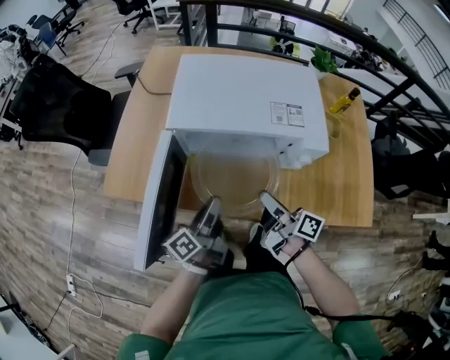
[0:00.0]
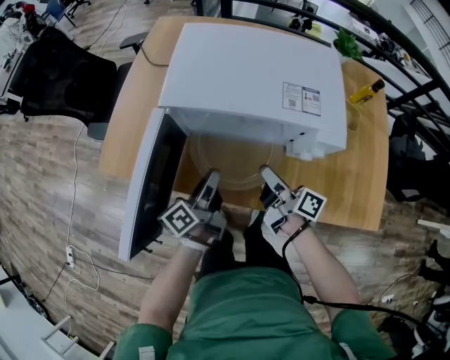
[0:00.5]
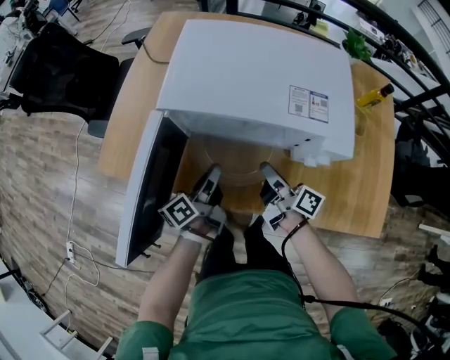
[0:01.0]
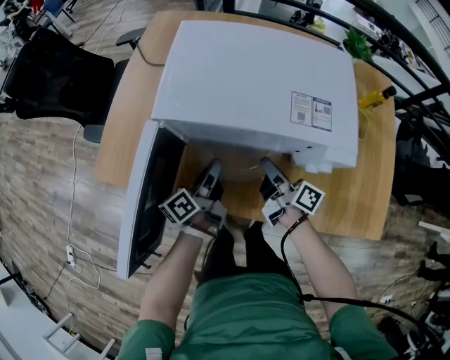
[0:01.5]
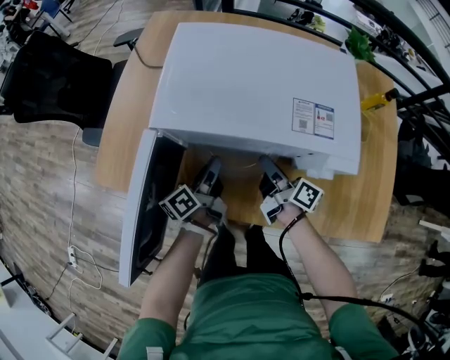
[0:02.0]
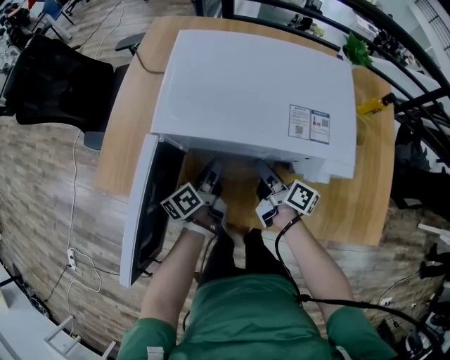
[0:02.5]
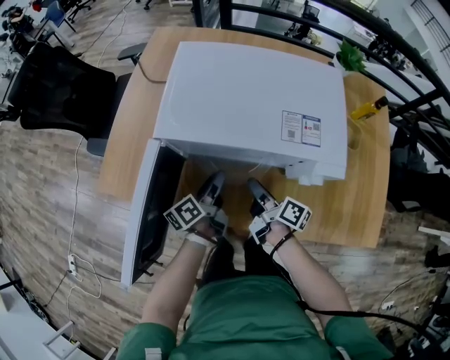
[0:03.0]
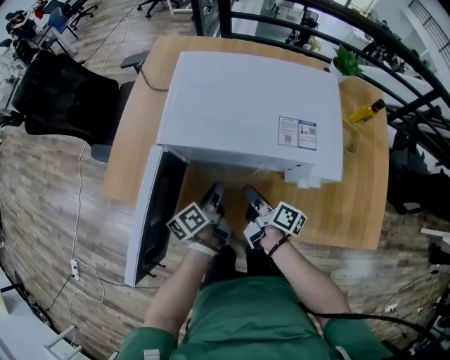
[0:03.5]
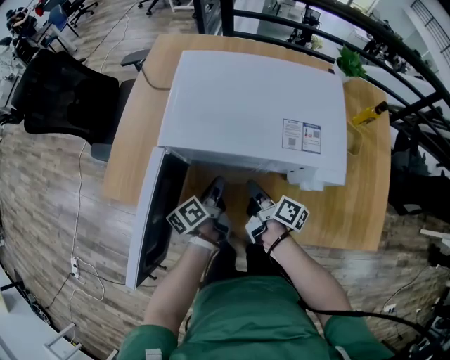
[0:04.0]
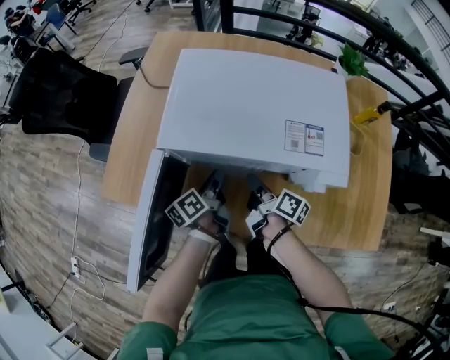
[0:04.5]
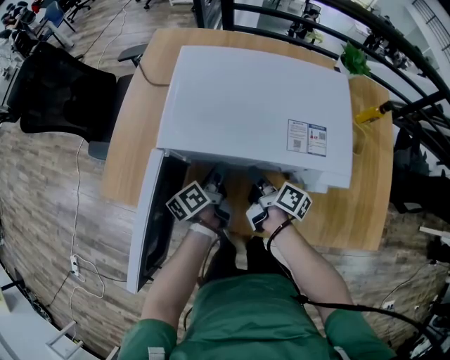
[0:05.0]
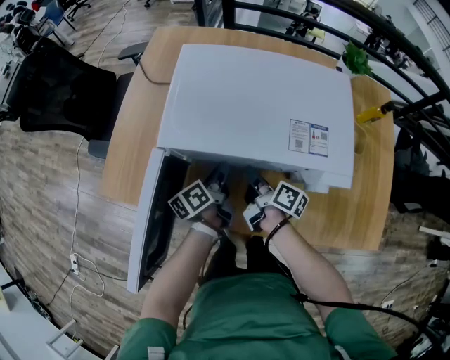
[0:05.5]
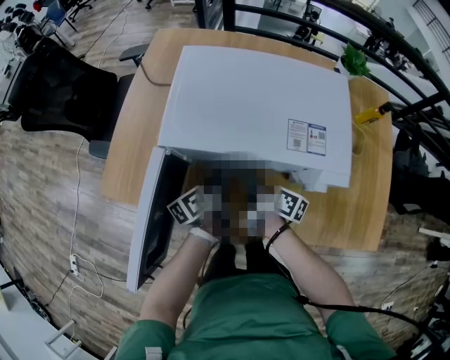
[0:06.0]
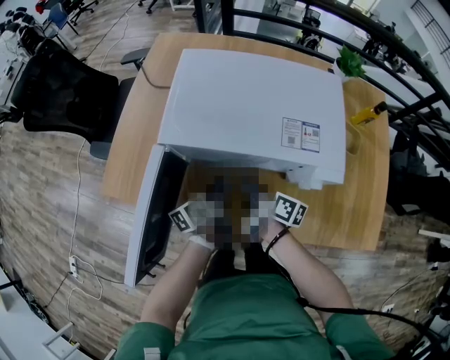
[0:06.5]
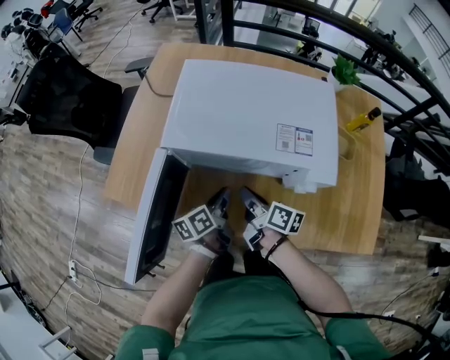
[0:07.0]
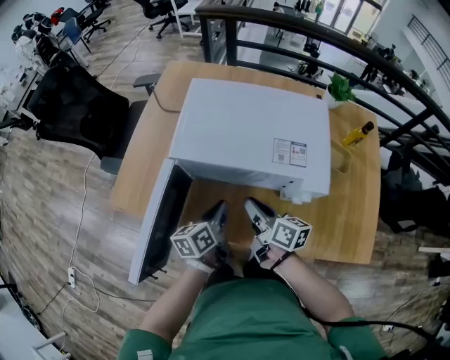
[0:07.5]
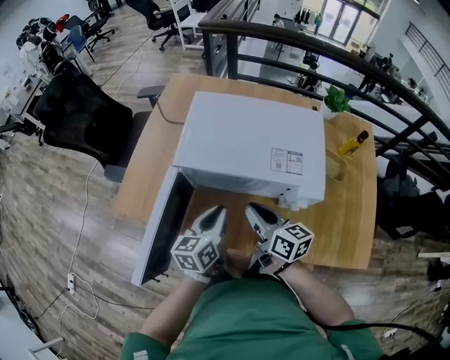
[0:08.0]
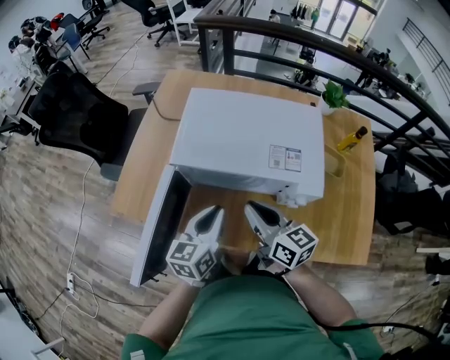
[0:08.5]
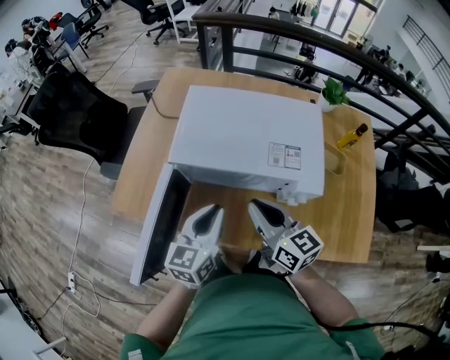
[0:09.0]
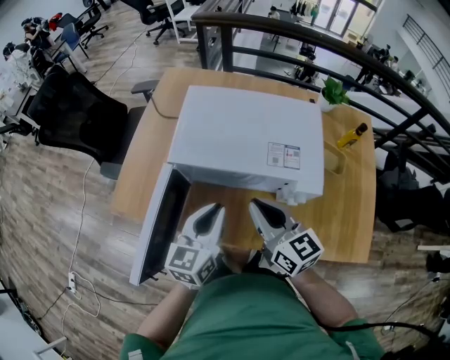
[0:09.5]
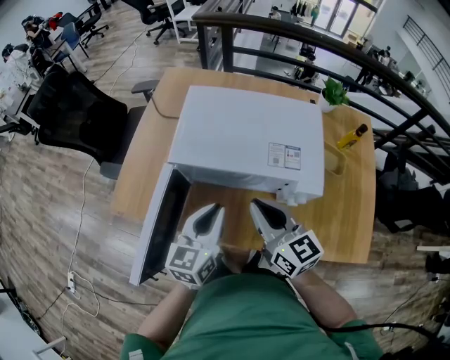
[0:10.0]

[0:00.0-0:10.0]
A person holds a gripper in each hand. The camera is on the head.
0:00.0 to 0:02.0: The two grippers go roughly 15 cm forward and downward.
0:02.0 to 0:04.0: The right gripper opens and closes again; the left gripper opens and closes again.
0:04.0 to 0:06.0: There are only small adjustments of the grippers.
0:06.0 to 0:08.0: Both grippers travel together upward and backward, approximately 15 cm. The right gripper swivels some 40 degrees, while the left gripper changes its angle by some 40 degrees.
0:08.0 to 0:10.0: The grippers both shift upward by some 5 cm. The right gripper changes its angle by about 20 degrees.

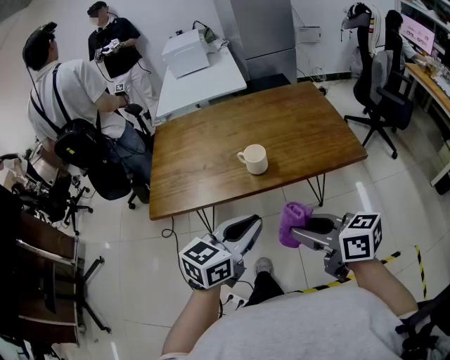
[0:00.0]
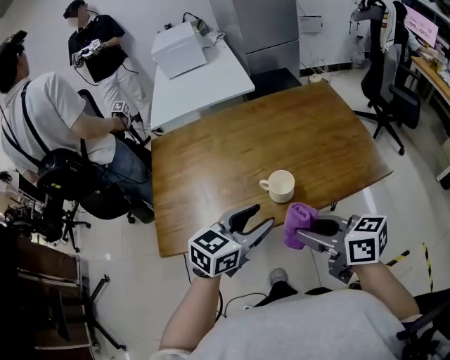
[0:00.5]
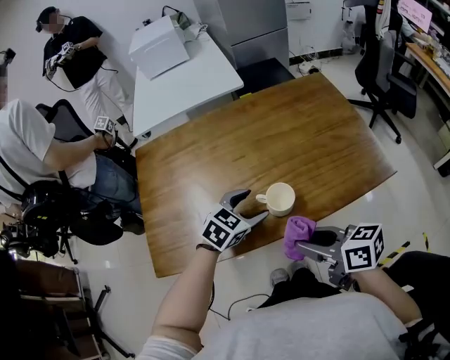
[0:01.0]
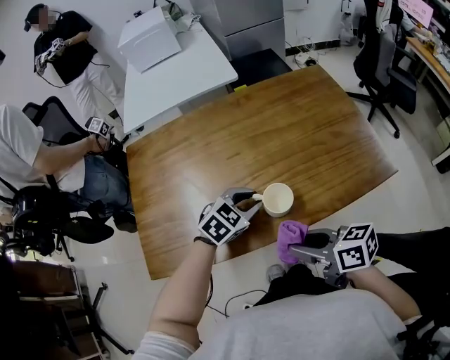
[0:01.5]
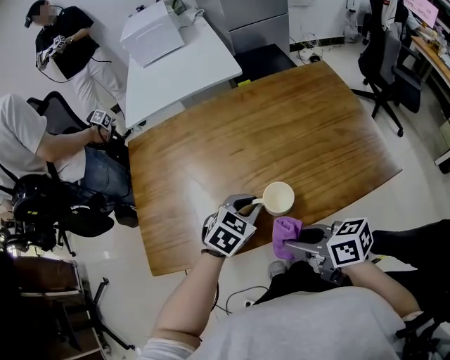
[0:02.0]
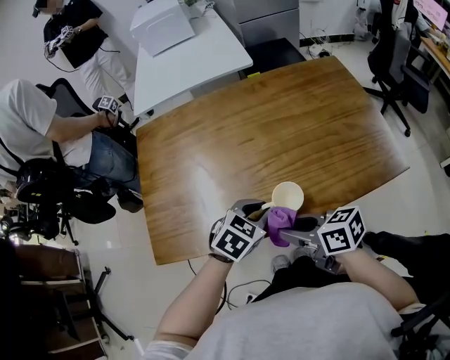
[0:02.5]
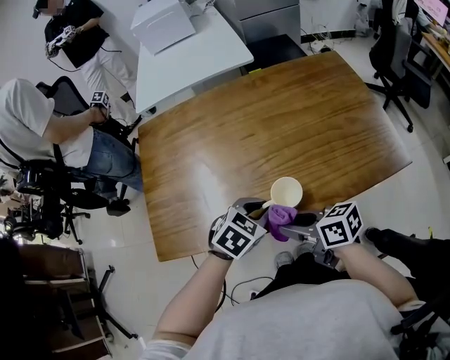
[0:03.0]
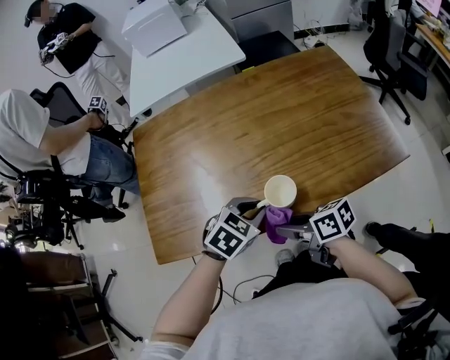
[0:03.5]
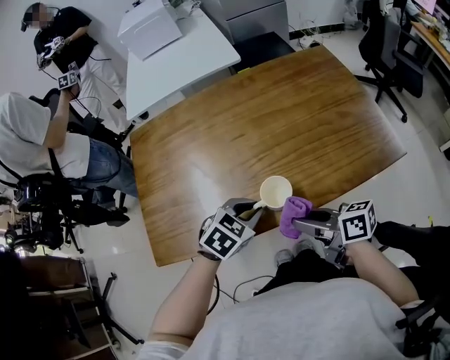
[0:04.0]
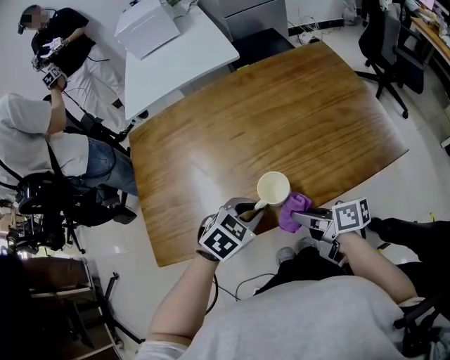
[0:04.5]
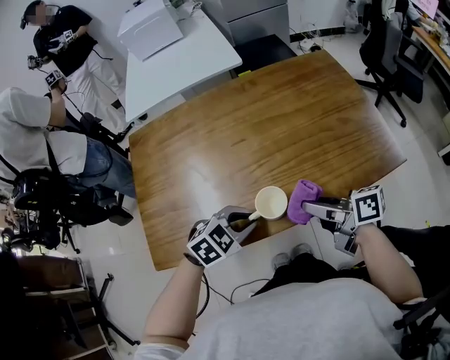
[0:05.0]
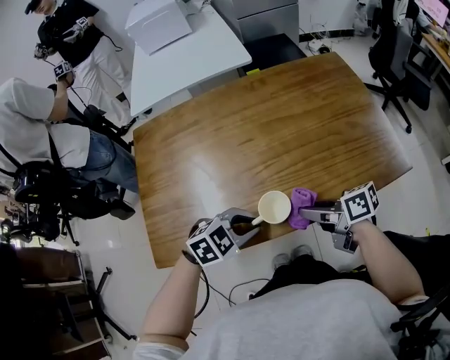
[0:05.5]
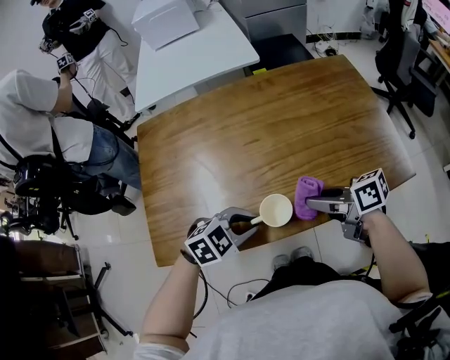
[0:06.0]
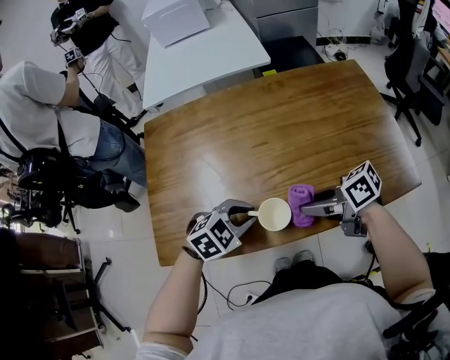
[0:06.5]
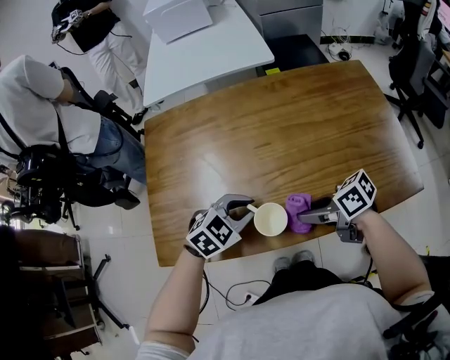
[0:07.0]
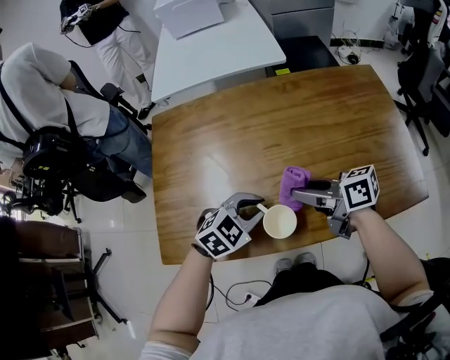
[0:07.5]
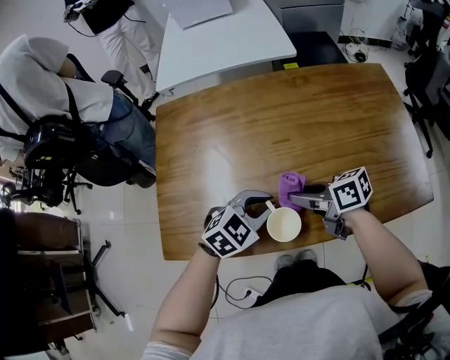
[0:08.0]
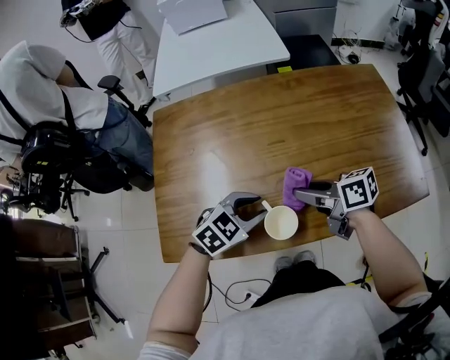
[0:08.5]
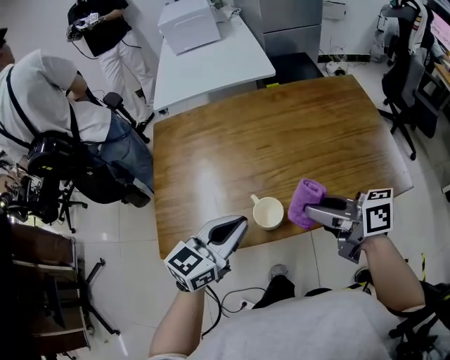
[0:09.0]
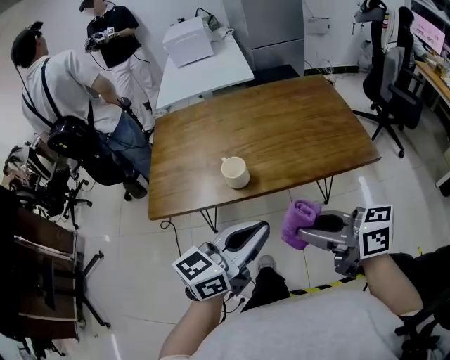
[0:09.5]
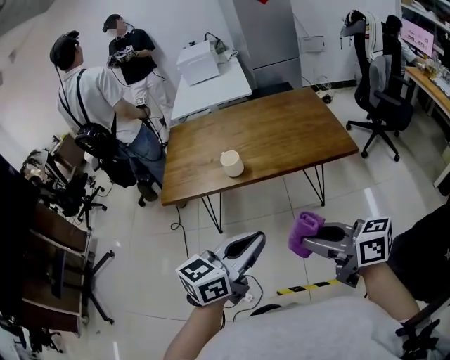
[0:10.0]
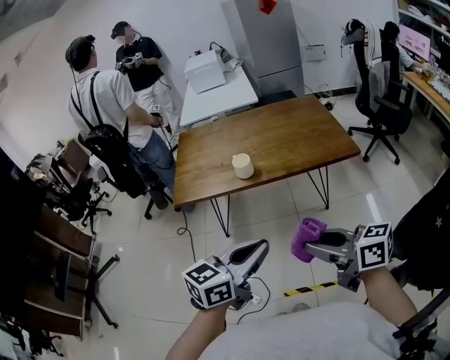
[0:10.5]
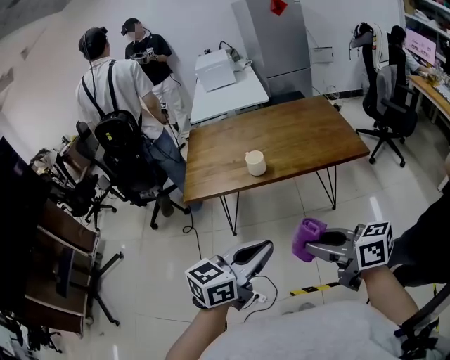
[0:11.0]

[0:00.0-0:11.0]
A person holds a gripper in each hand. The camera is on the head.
0:00.0 to 0:02.0: The two grippers go approximately 35 cm forward and downward. The left gripper angles its fingers downward, by about 30 degrees, and opens and closes again.
0:02.0 to 0:03.5: The left gripper changes place by some 5 cm, while the right gripper shifts roughly 10 cm downward.
0:03.5 to 0:05.5: The left gripper rotates approximately 20 degrees. The right gripper goes up and down, some 5 cm each way, reversing 3 times.
0:05.5 to 0:07.5: The left gripper ends up approximately 10 cm from where it was. Meanwhile the right gripper changes place by roughly 15 cm.
0:07.5 to 0:09.0: The left gripper moves upward, some 15 cm, and angles its fingers upward, by roughly 30 degrees; the right gripper changes place by some 15 cm.
0:09.0 to 0:11.0: The pair of grippers is taken backward, approximately 50 cm.

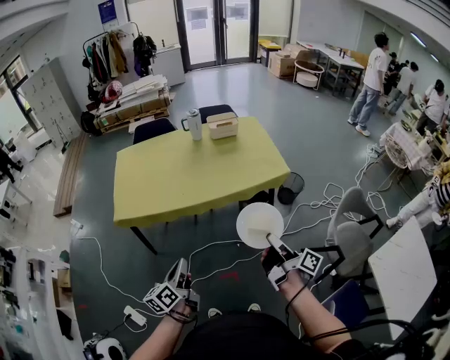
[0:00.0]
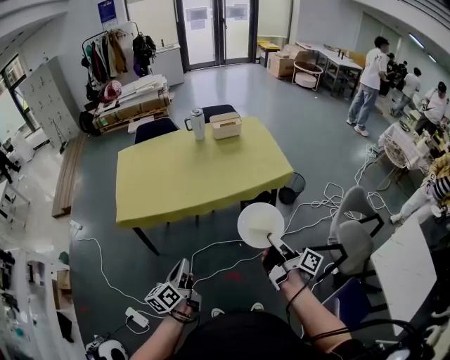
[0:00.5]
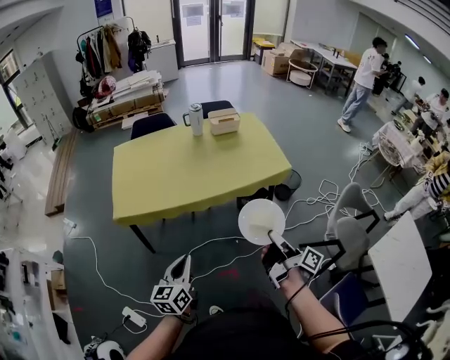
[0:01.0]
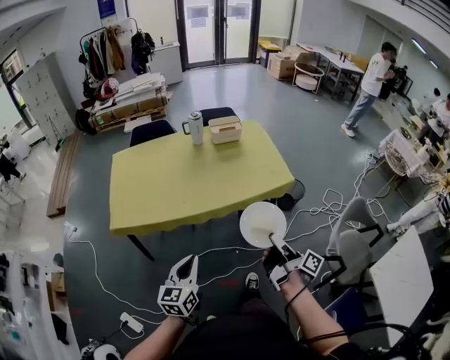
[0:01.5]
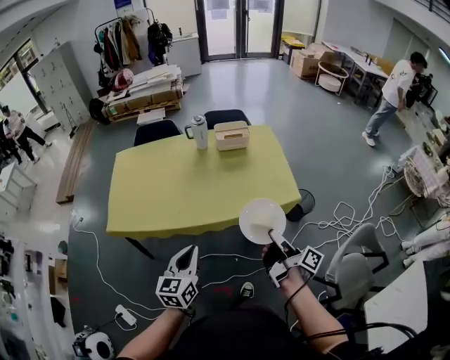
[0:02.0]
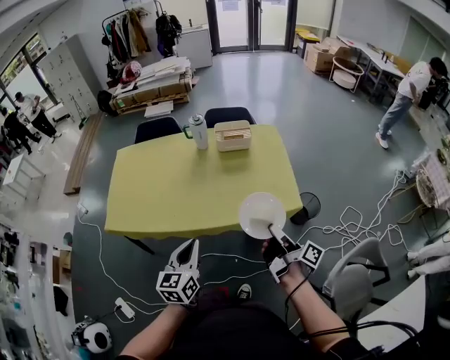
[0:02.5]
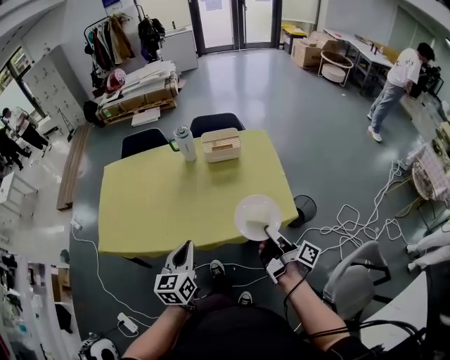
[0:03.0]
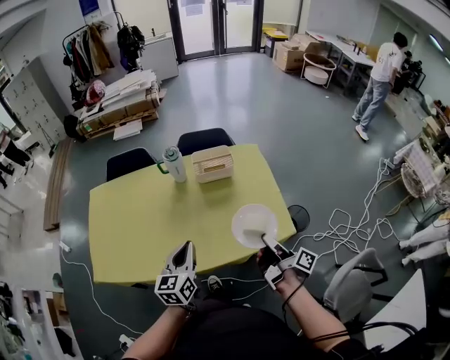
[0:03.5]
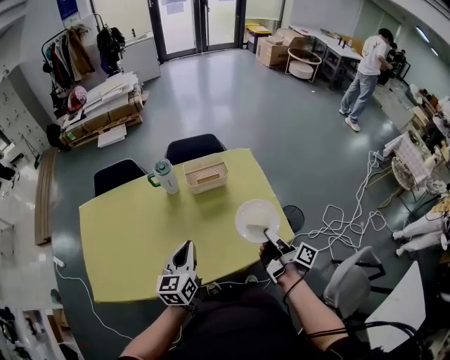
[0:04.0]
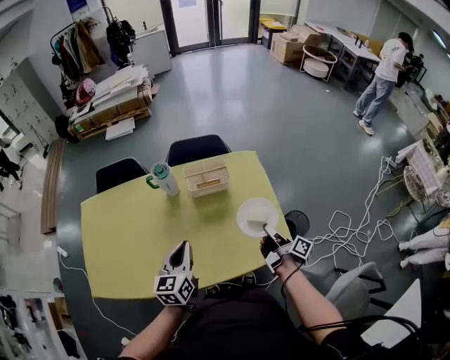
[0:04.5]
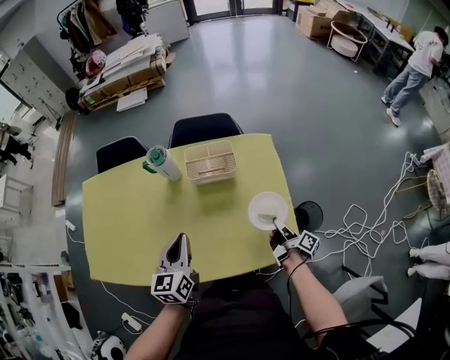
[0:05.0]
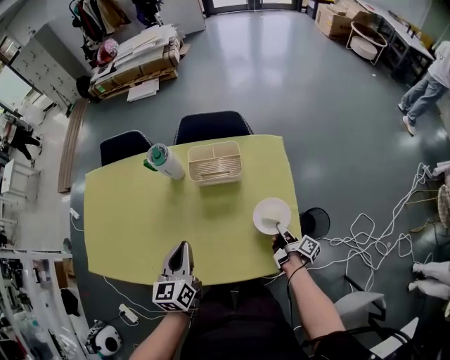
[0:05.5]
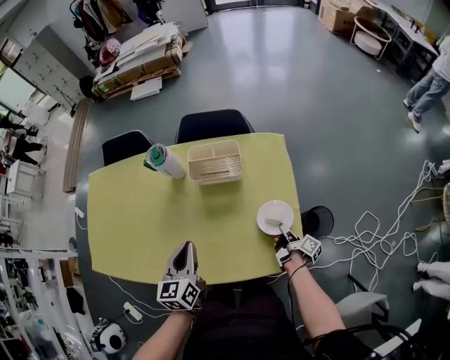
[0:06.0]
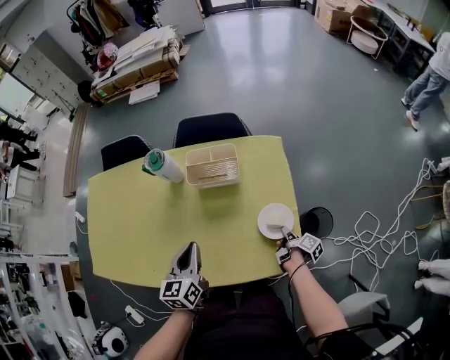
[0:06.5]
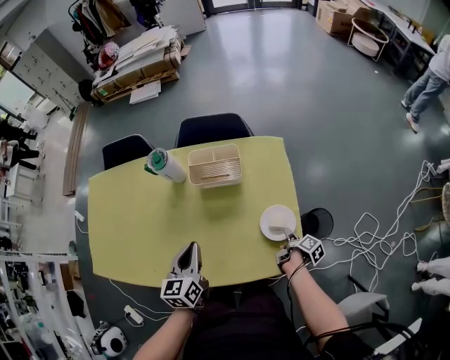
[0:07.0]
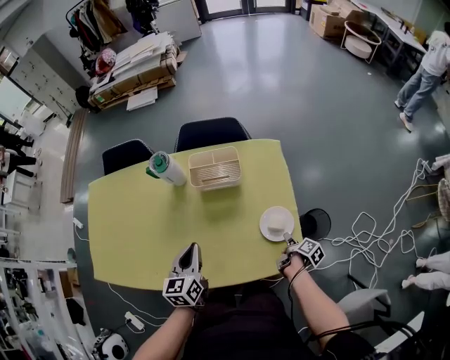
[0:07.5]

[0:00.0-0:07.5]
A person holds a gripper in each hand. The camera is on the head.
0:00.0 to 0:02.0: The left gripper changes place by about 25 cm, and turns by some 30 degrees.
0:02.0 to 0:04.0: The left gripper shifts by about 35 cm.
0:04.0 to 0:05.5: The left gripper moves some 15 cm, and swivels about 20 degrees.
